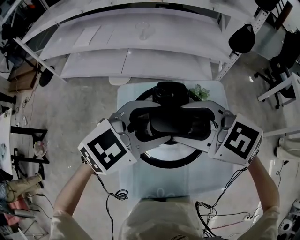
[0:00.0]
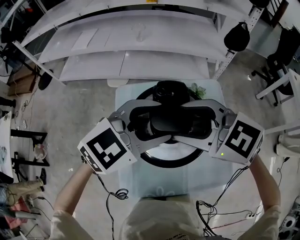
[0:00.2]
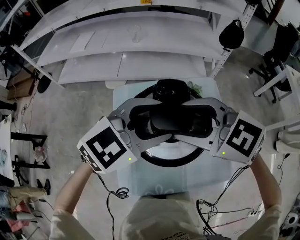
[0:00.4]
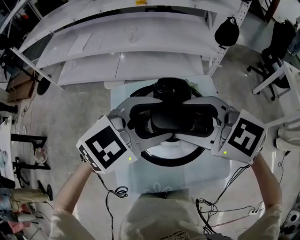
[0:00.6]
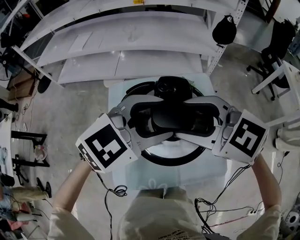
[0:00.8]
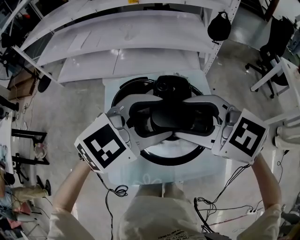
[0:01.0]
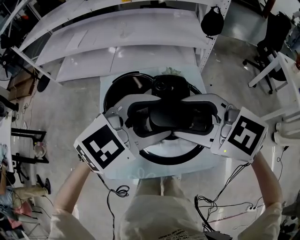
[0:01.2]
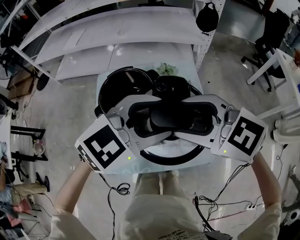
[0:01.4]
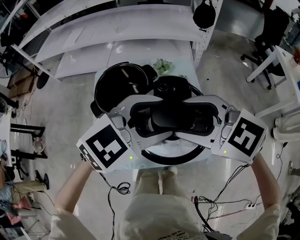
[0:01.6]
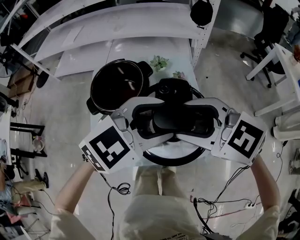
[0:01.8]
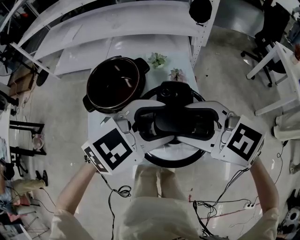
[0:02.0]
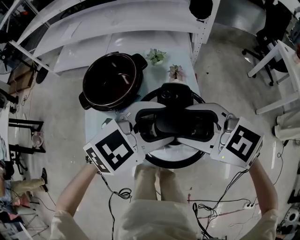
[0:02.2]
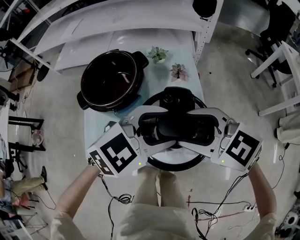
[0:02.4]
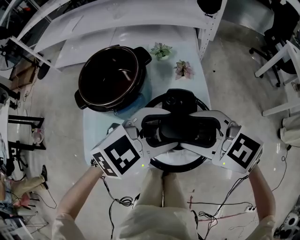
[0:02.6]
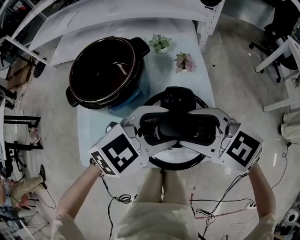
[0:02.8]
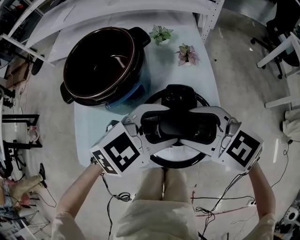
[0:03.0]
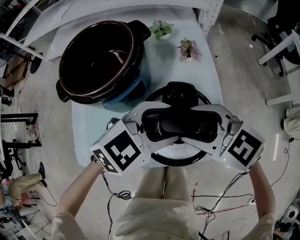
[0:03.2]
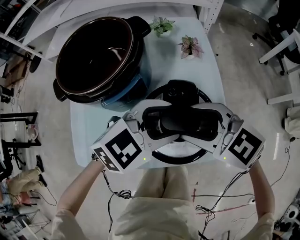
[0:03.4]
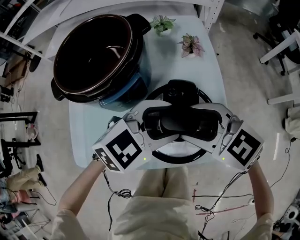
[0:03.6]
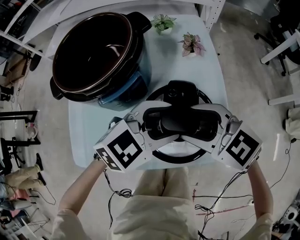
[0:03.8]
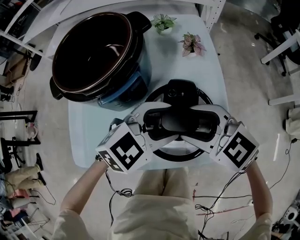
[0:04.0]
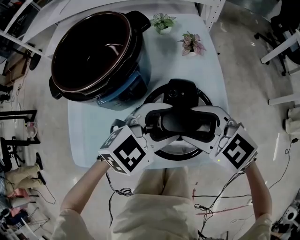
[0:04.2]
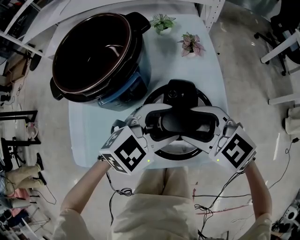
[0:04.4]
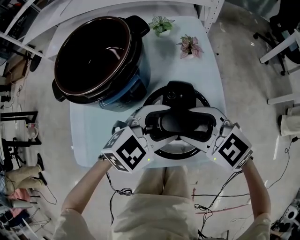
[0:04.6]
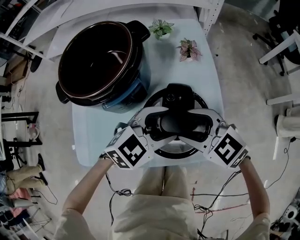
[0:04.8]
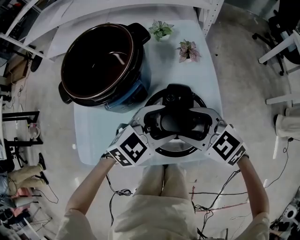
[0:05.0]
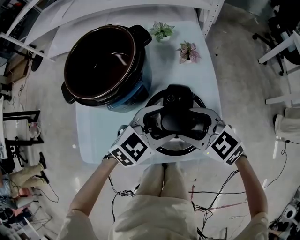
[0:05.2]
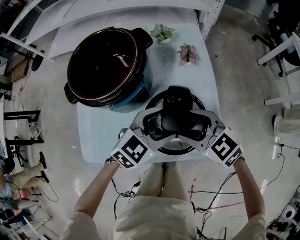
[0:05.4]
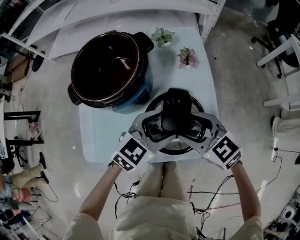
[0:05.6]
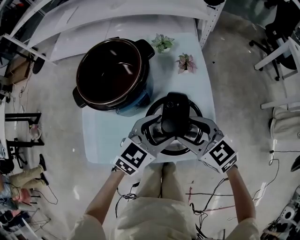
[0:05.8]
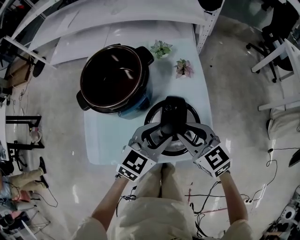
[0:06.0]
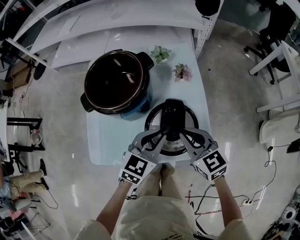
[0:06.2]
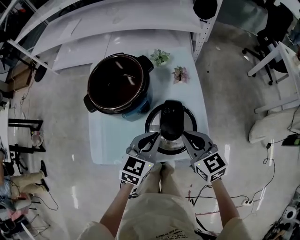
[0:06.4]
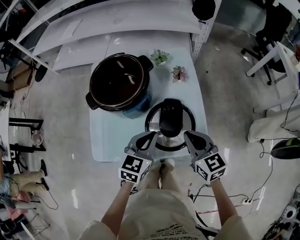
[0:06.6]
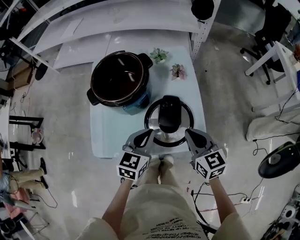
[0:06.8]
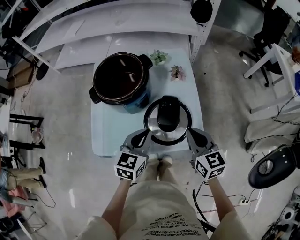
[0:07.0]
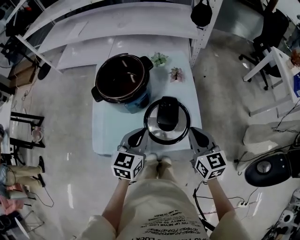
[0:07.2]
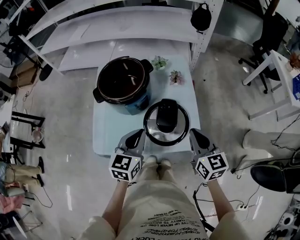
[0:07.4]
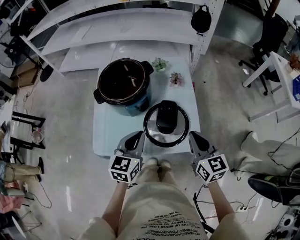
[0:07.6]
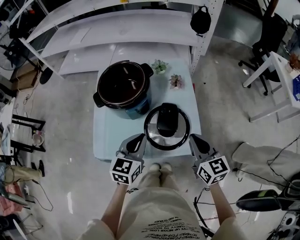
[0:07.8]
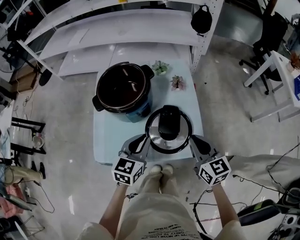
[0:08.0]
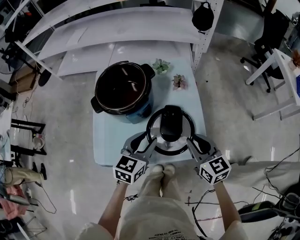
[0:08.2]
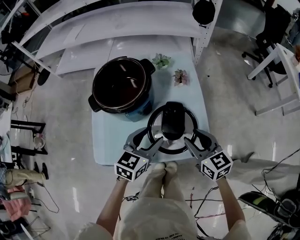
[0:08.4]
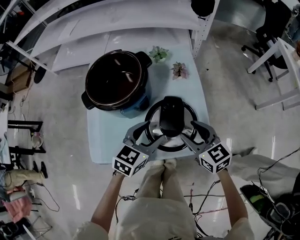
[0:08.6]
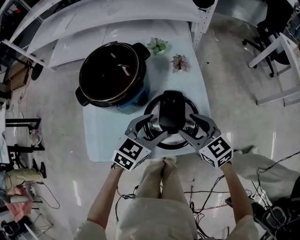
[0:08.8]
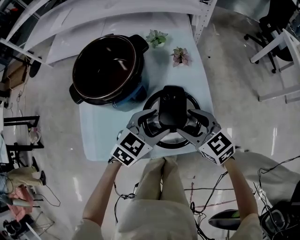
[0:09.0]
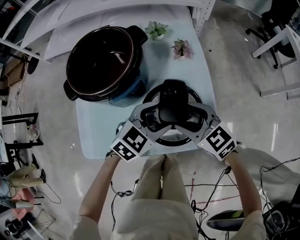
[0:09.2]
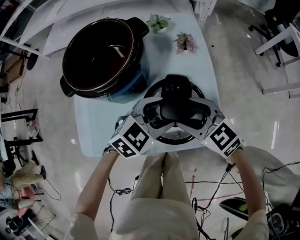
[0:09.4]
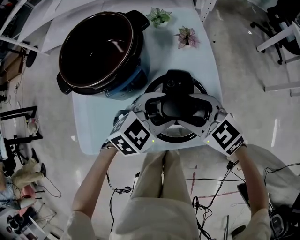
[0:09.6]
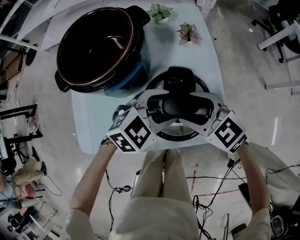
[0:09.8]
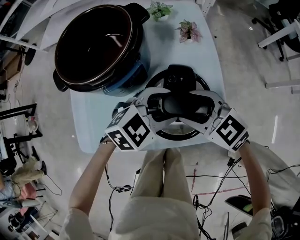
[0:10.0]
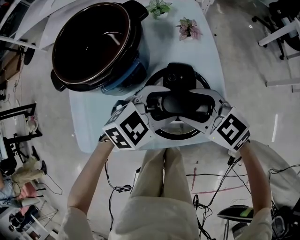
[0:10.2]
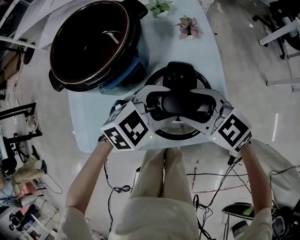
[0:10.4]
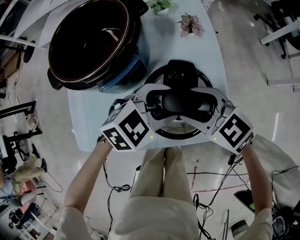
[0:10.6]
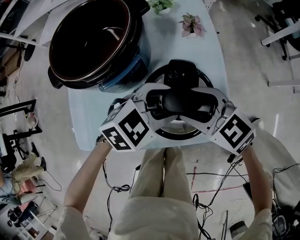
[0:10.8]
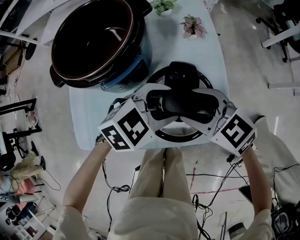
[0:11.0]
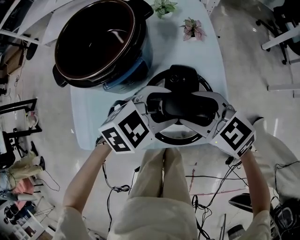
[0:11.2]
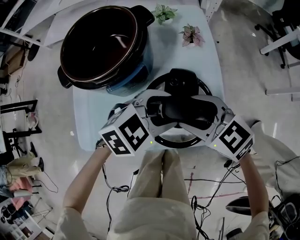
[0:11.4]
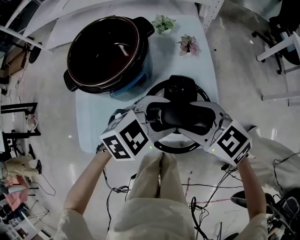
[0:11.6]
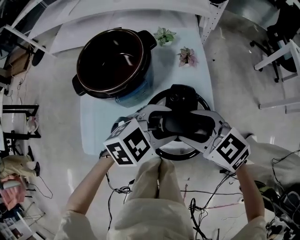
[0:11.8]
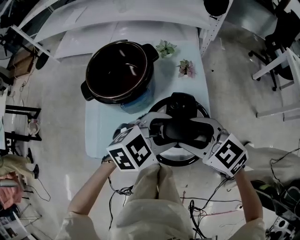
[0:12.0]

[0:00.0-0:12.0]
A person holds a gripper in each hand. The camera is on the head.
0:00.0 to 0:01.6: The right gripper shifts by some 25 cm. The left gripper moves approximately 25 cm.
0:01.6 to 0:03.0: The grippers both shift downward by some 20 cm.
0:03.0 to 0:04.4: The grippers both shift downward by some 5 cm.
0:04.4 to 0:06.0: The grippers both shift upward by about 5 cm. The right gripper turns by approximately 20 degrees, and closes; the left gripper rotates approximately 30 degrees.
0:06.0 to 0:07.6: The right gripper heads upward, to the right and backward, covering approximately 10 cm, rotates roughly 30 degrees, and closes up; the left gripper heads to the left, upward and backward, covering about 10 cm, turns by roughly 30 degrees, and closes up.
0:07.6 to 0:09.0: The right gripper moves downward, to the left and forward, about 15 cm, swivels about 30 degrees, and opens up, while the left gripper goes approximately 15 cm downward, to the right and forward, changes its angle by some 40 degrees, and opens.
0:09.0 to 0:10.4: The left gripper changes its angle by about 20 degrees.
0:10.4 to 0:12.0: Both grippers travel together upward, approximately 10 cm.

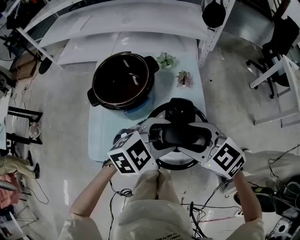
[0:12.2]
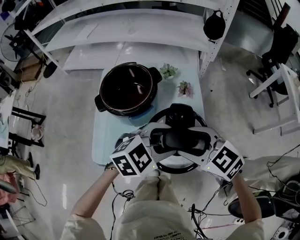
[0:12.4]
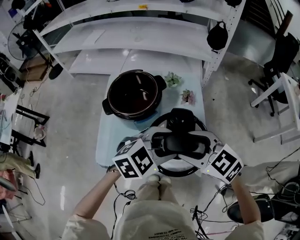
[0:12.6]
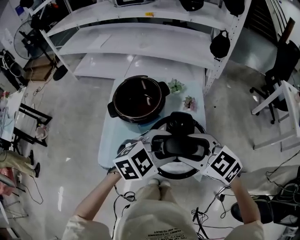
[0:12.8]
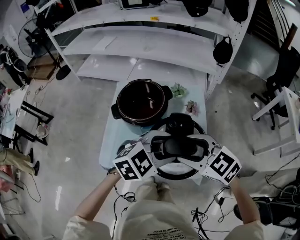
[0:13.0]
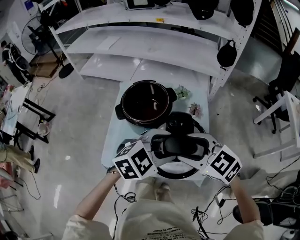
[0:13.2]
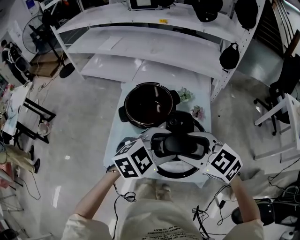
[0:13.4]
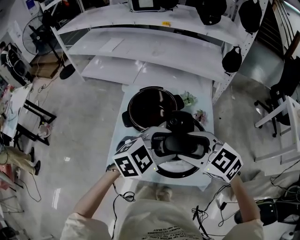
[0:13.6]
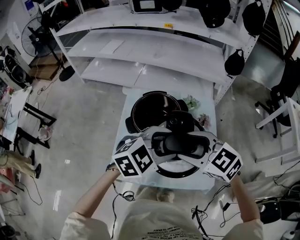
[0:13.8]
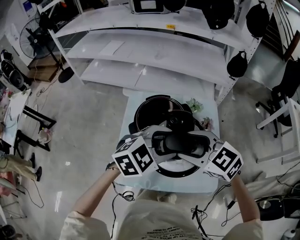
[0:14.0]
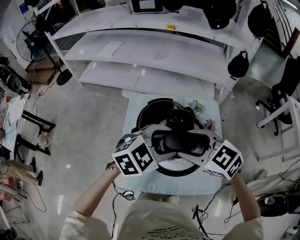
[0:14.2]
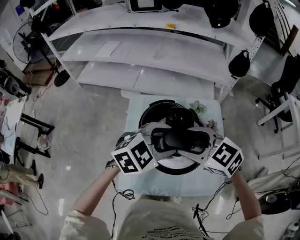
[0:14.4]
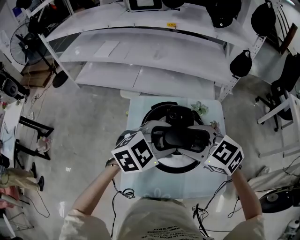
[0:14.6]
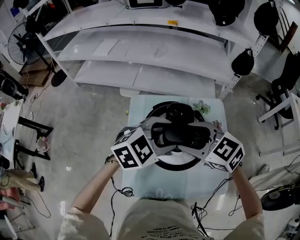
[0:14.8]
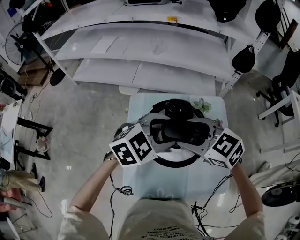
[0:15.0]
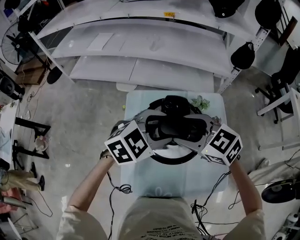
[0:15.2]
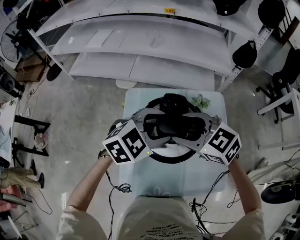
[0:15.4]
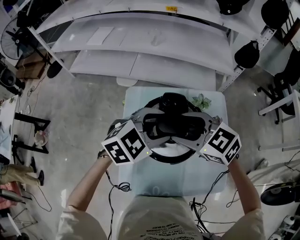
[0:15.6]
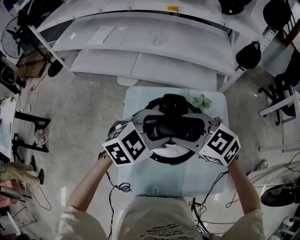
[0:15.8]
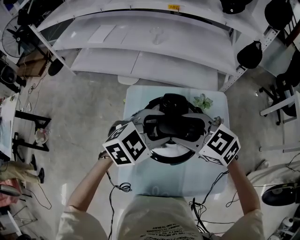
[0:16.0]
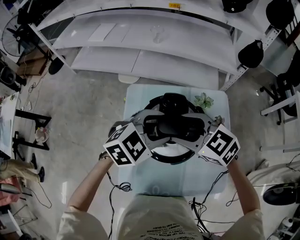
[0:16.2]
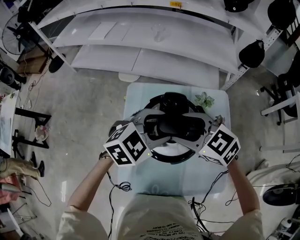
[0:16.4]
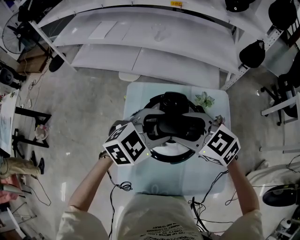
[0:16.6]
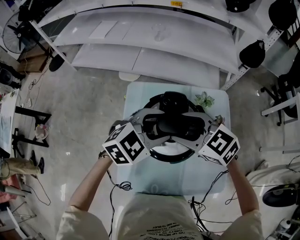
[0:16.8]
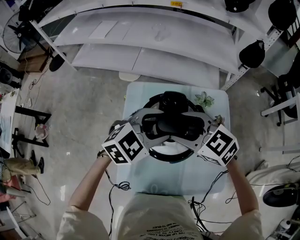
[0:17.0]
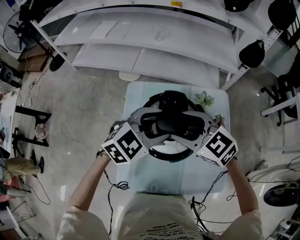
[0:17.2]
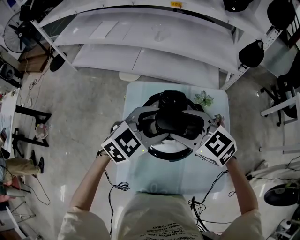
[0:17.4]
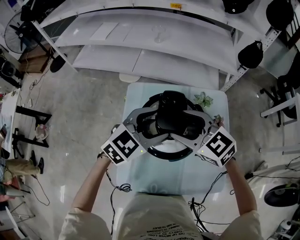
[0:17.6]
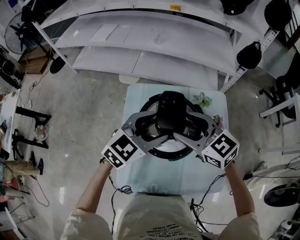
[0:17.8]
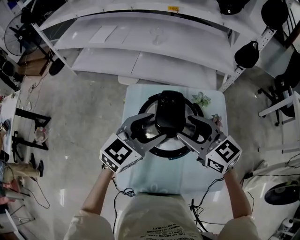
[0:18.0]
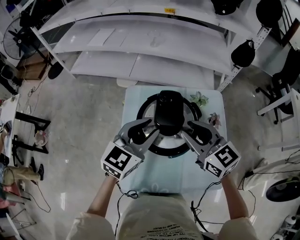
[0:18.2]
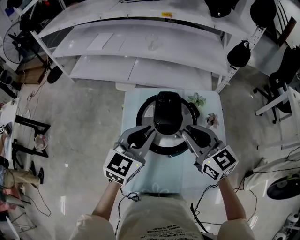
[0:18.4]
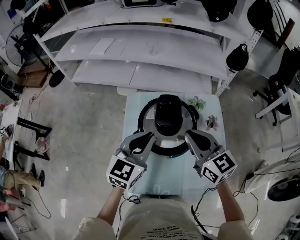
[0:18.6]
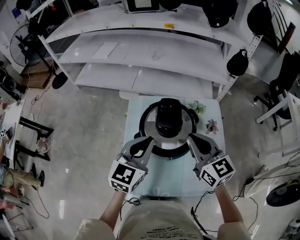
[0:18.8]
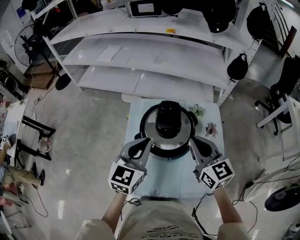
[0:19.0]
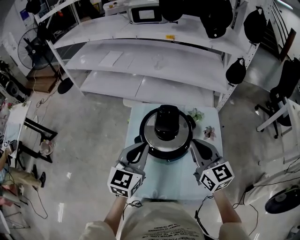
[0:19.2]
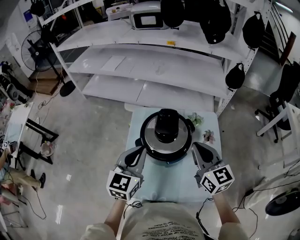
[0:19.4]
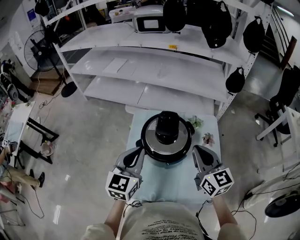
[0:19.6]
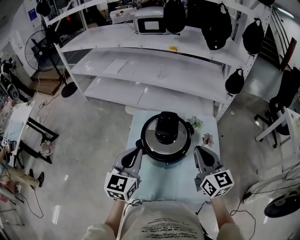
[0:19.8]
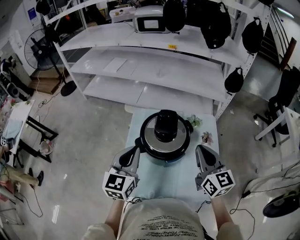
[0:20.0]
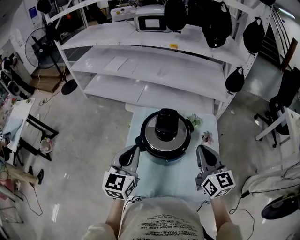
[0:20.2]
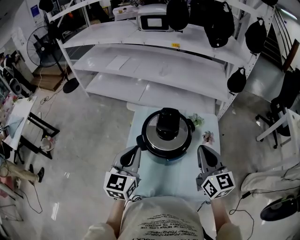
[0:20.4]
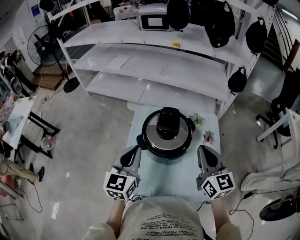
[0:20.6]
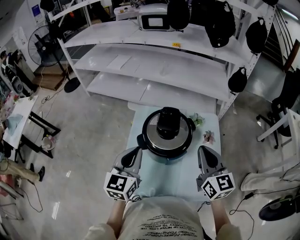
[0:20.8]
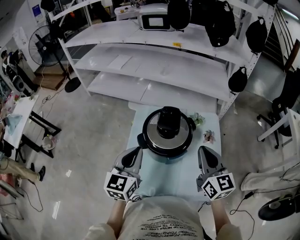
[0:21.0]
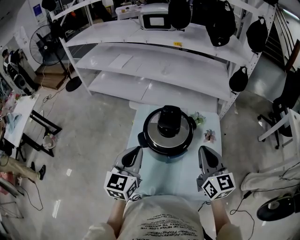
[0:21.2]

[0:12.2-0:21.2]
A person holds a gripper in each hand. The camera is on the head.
0:12.2 to 0:13.8: The right gripper ends up approximately 15 cm from where it was, while the left gripper moves approximately 15 cm.
0:13.8 to 0:15.2: Both grippers move forward and to the left, about 15 cm.
0:15.2 to 0:16.6: The grippers stay close to where they were, moving slightly.
0:16.6 to 0:18.2: The left gripper ends up approximately 5 cm from where it was, turns by roughly 30 degrees, and closes its fingers; the right gripper ends up roughly 5 cm from where it was, rotates roughly 30 degrees, and closes.
0:18.2 to 0:19.8: The left gripper shifts approximately 10 cm backward and to the left, turns by approximately 20 degrees, and closes. Meanwhile the right gripper shifts approximately 10 cm to the right and backward, rotates roughly 20 degrees, and closes.
0:19.8 to 0:21.2: The grippers stay close to where they were, moving slightly.

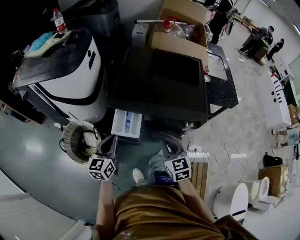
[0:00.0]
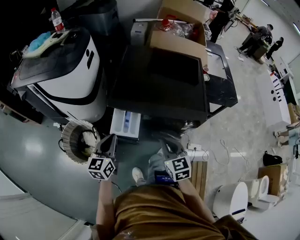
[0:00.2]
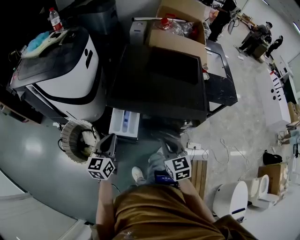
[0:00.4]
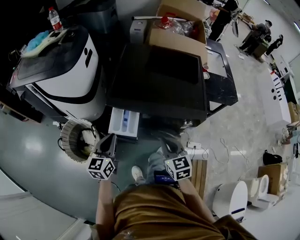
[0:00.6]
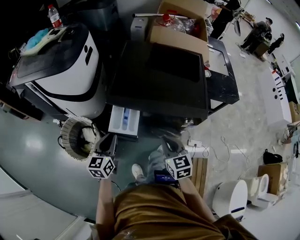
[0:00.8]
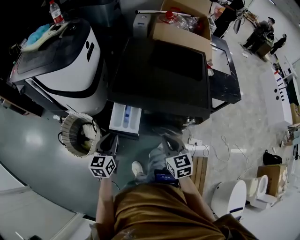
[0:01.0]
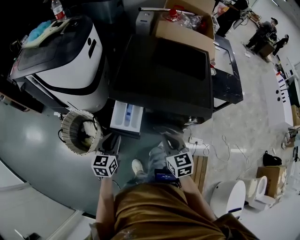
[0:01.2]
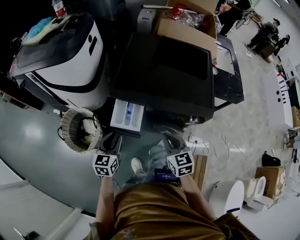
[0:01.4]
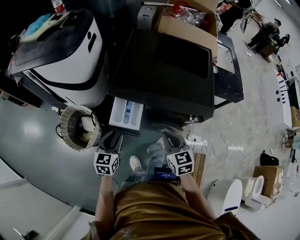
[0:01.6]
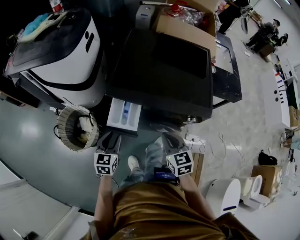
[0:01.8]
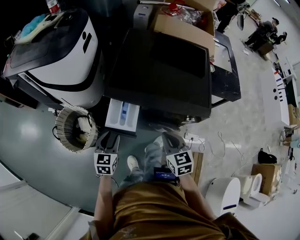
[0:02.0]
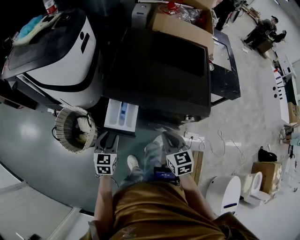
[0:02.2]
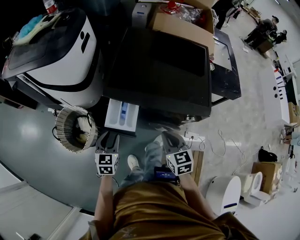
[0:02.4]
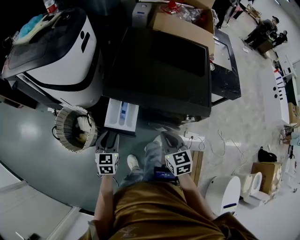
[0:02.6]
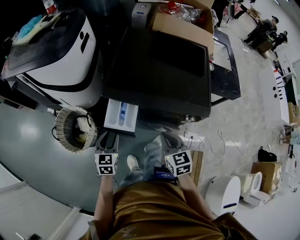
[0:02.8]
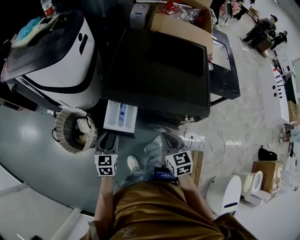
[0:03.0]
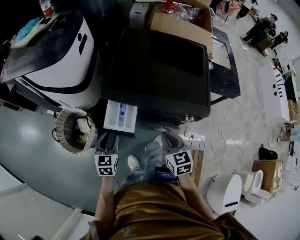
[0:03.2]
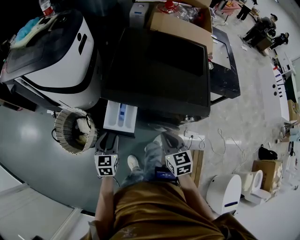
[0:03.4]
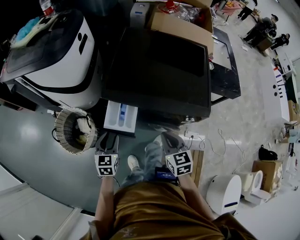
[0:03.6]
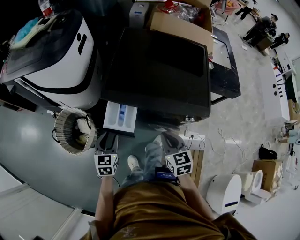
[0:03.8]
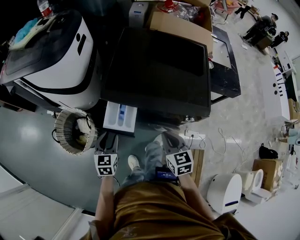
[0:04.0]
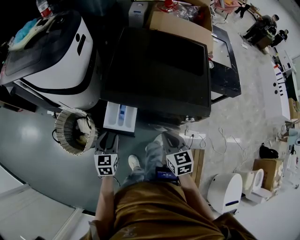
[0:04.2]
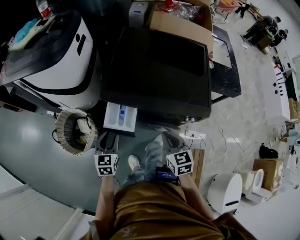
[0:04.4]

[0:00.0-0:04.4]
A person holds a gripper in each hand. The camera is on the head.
0:00.0 to 0:01.4: The left gripper shifts roughly 5 cm downward, and opens its fingers.
0:01.4 to 0:04.4: There are only small adjustments of the grippers.
